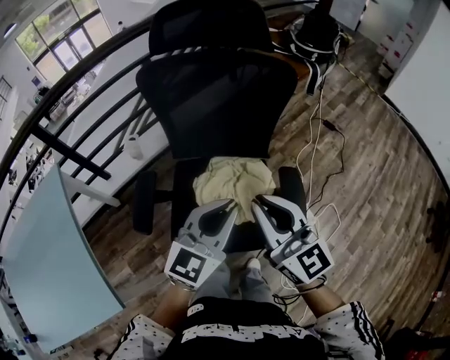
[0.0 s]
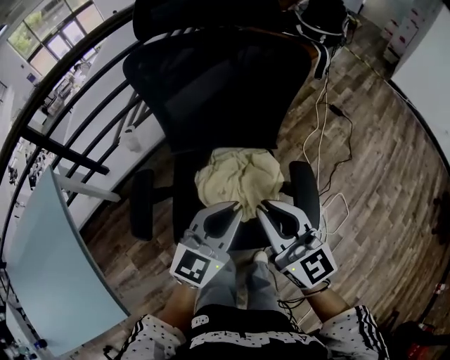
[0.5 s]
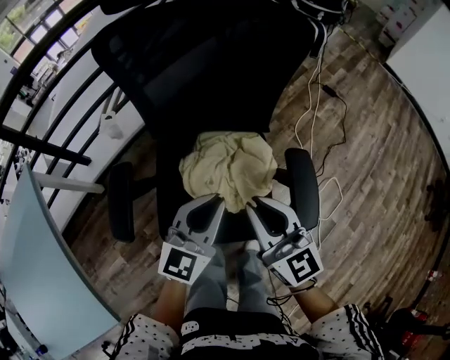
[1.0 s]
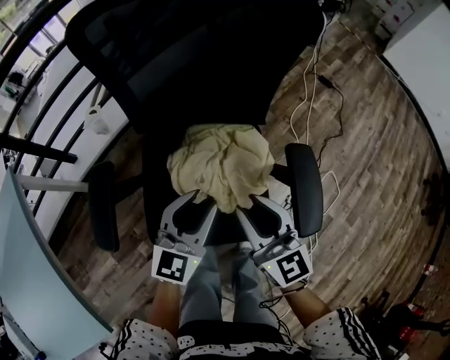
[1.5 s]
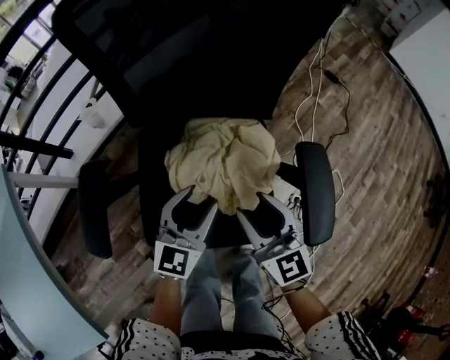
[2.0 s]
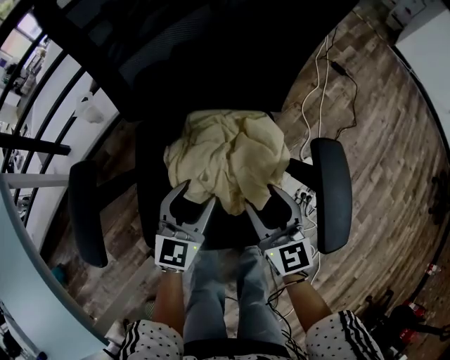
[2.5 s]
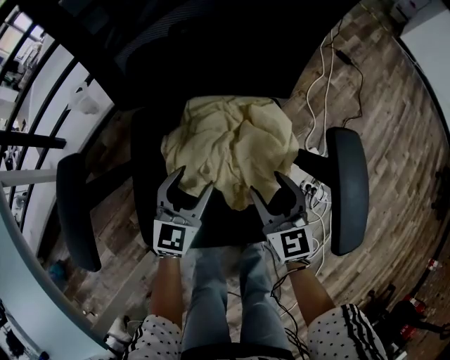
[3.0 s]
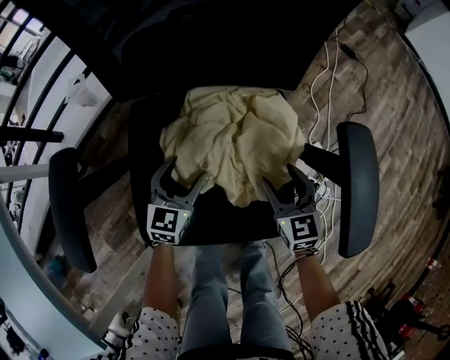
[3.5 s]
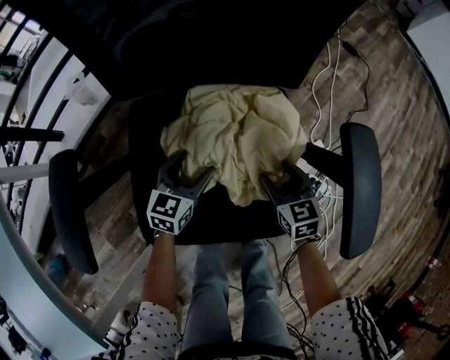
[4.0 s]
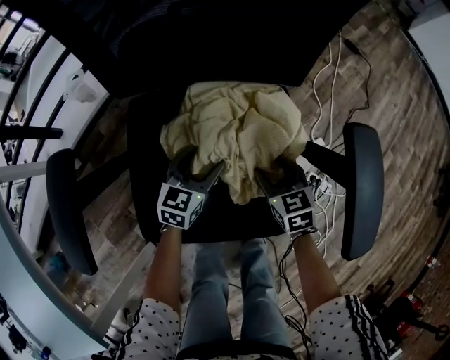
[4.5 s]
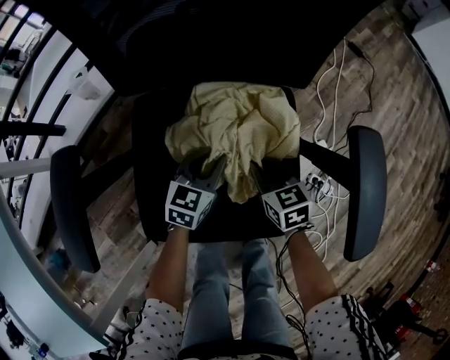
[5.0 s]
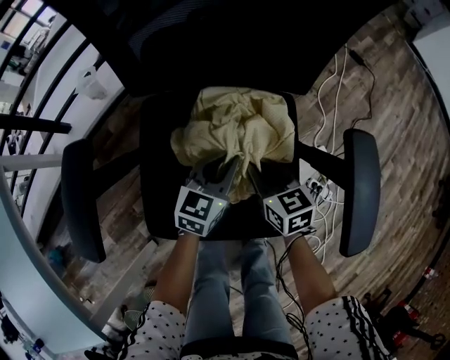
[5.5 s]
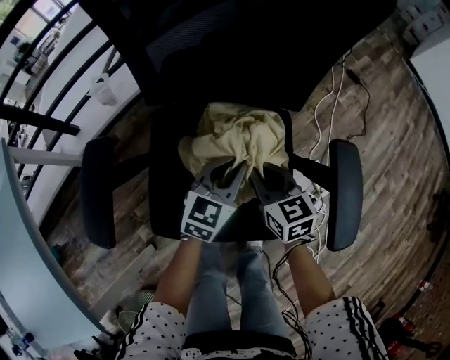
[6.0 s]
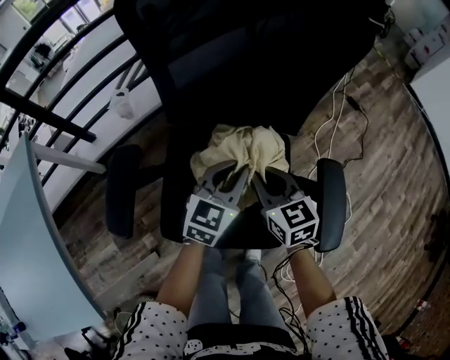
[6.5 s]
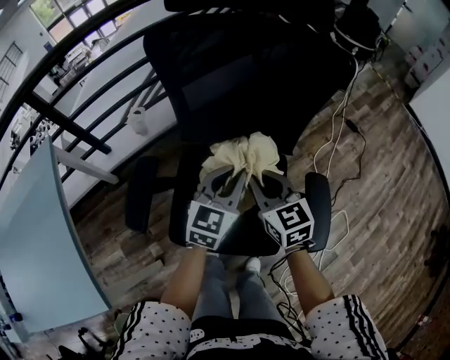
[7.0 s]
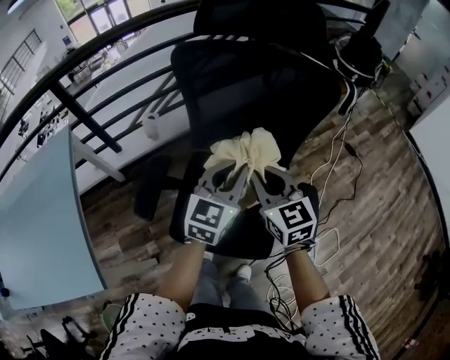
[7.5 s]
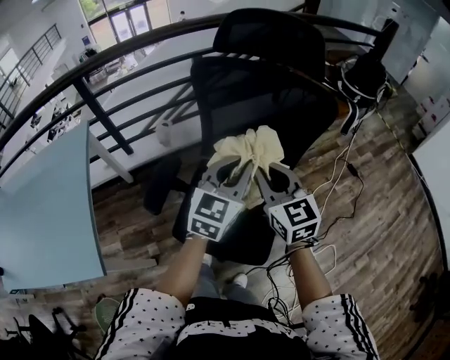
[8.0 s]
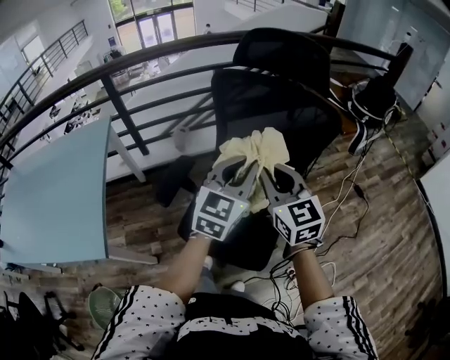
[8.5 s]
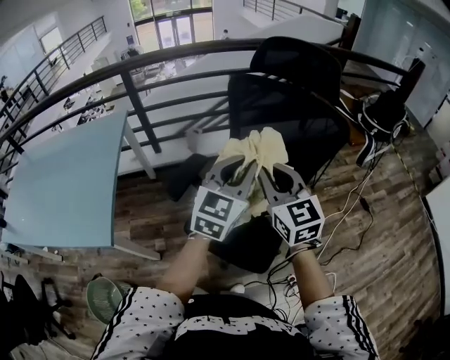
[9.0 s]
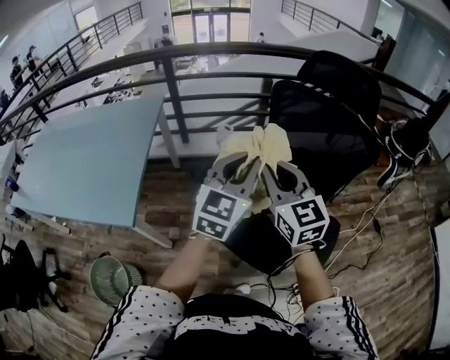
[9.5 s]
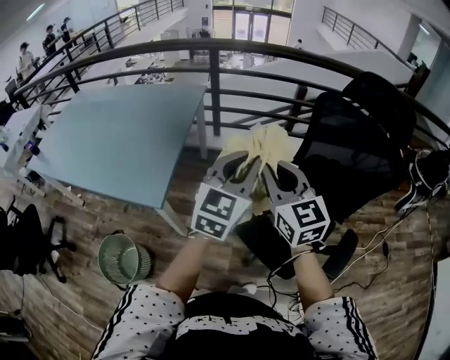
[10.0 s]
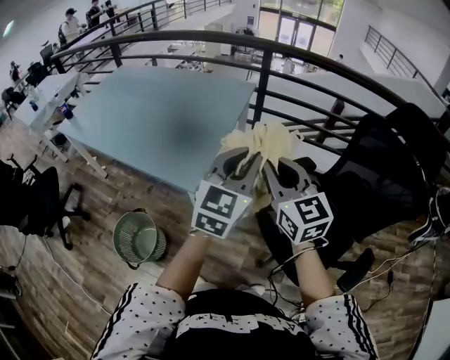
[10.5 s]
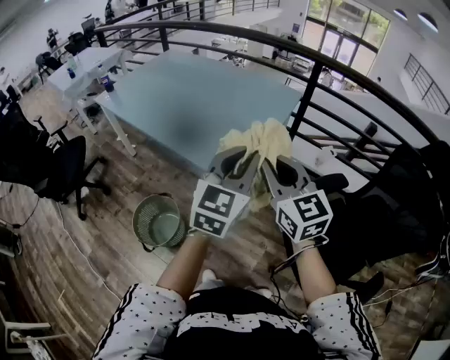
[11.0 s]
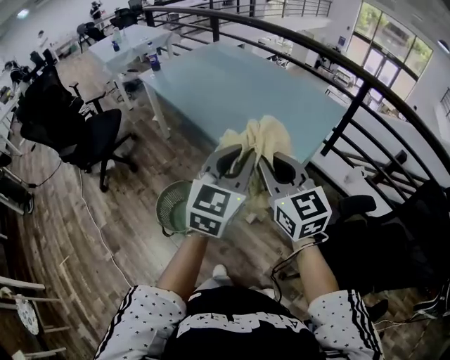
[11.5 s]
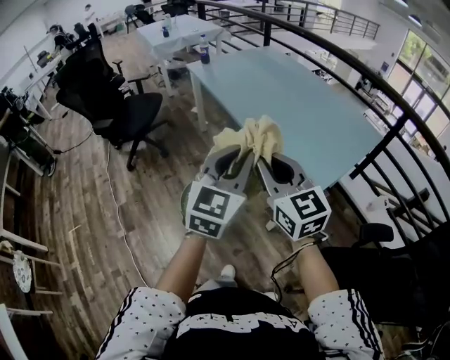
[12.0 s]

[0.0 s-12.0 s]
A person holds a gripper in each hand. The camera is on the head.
0.0 to 2.0 s: Both grippers travel together downward, approximately 30 cm. The right gripper opens. Meanwhile the left gripper opens up.
2.0 to 4.0 s: The grippers both shift downward by about 25 cm. The left gripper opens its fingers. The right gripper tips its fingers downward by roughly 30 degrees.
4.0 to 6.0 s: The left gripper heads upward and to the right, covering about 15 cm, and closes its fingers. The right gripper heads upward and to the left, covering roughly 15 cm, and closes up.
6.0 to 8.0 s: Both grippers move upward, some 35 cm. The left gripper turns by some 30 degrees, while the right gripper swivels approximately 30 degrees.
8.0 to 10.0 s: The left gripper moves about 30 cm, and swivels some 30 degrees, while the right gripper moves about 30 cm, and swivels approximately 30 degrees.
10.0 to 12.0 s: The two grippers travel together, about 50 cm. The left gripper rotates roughly 50 degrees; the right gripper swivels about 50 degrees.

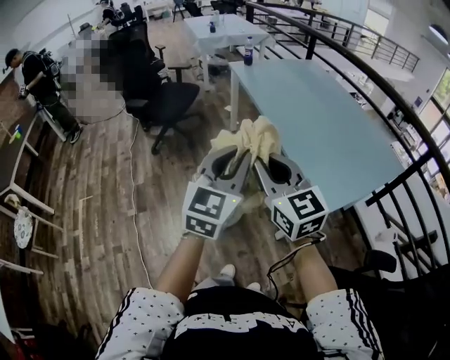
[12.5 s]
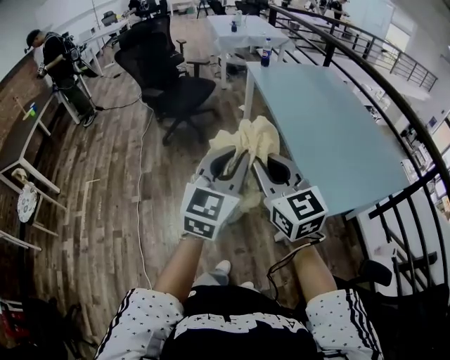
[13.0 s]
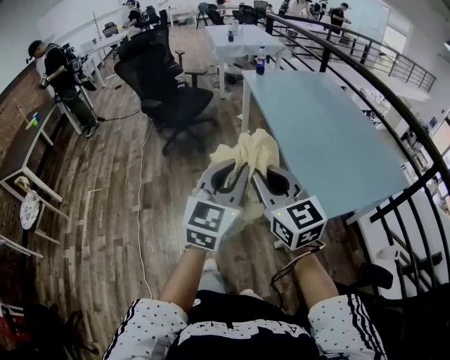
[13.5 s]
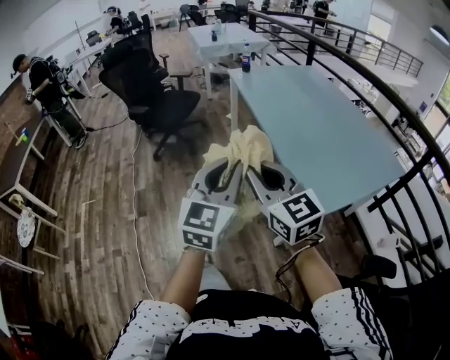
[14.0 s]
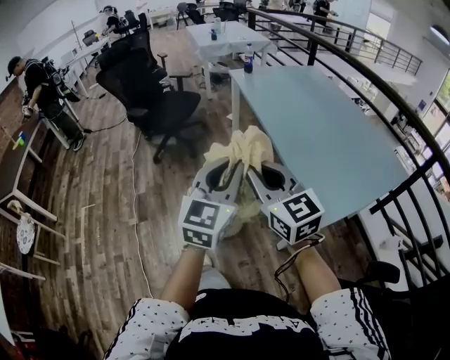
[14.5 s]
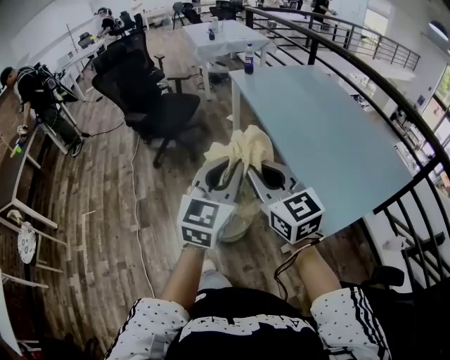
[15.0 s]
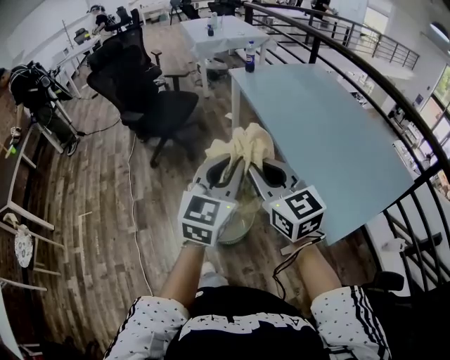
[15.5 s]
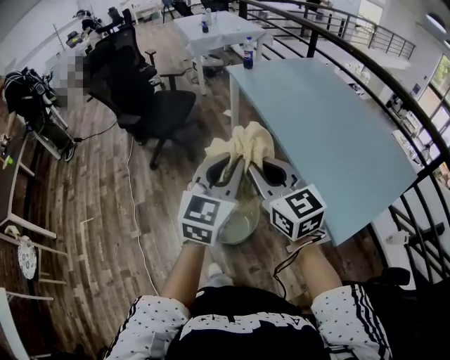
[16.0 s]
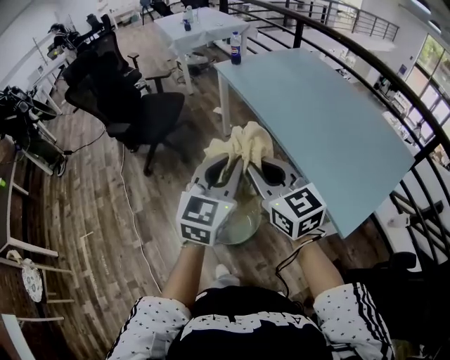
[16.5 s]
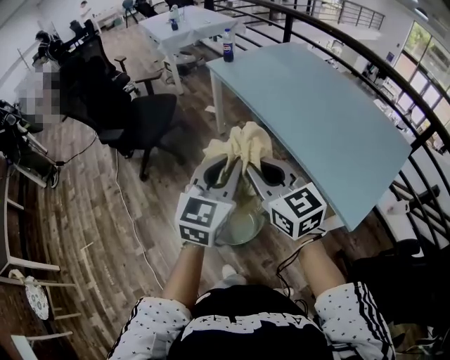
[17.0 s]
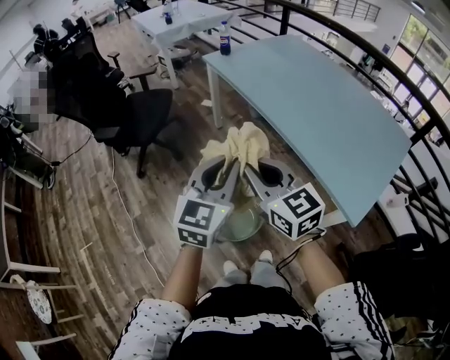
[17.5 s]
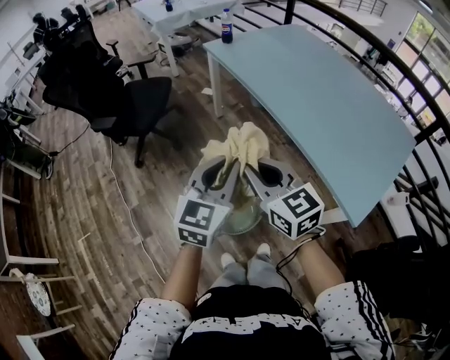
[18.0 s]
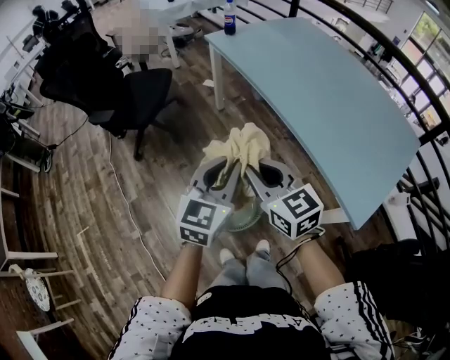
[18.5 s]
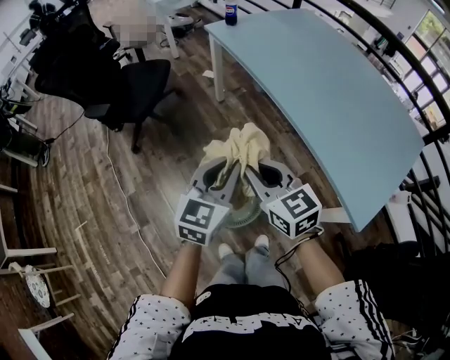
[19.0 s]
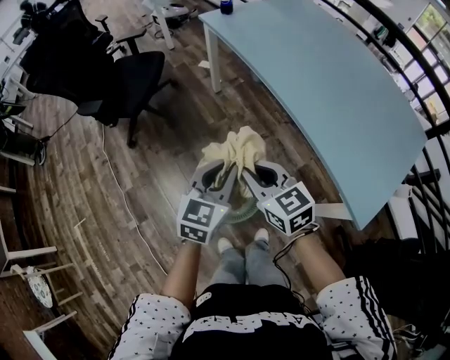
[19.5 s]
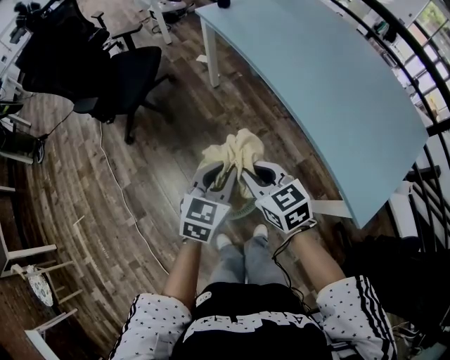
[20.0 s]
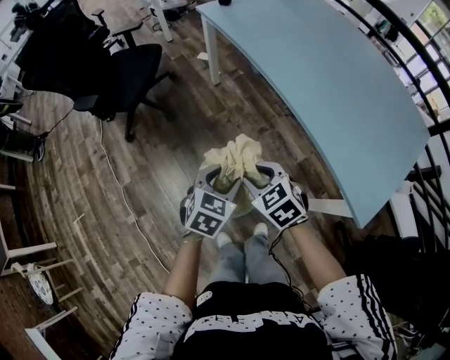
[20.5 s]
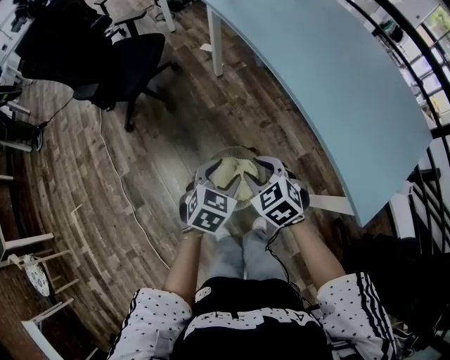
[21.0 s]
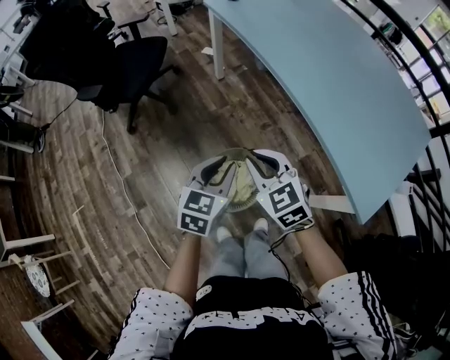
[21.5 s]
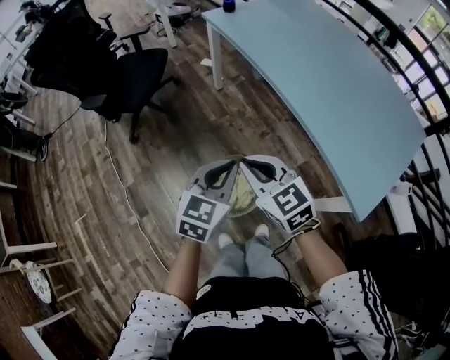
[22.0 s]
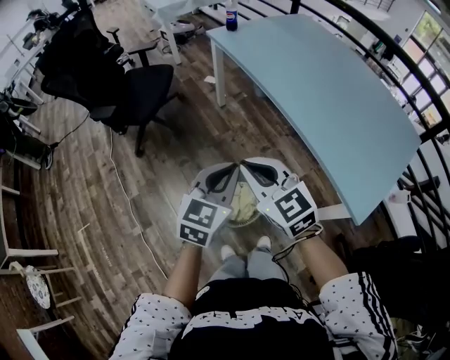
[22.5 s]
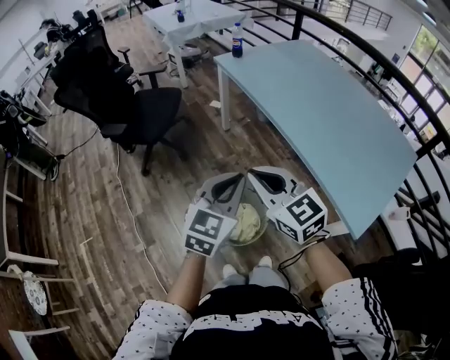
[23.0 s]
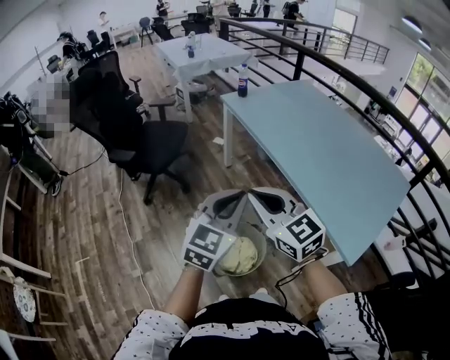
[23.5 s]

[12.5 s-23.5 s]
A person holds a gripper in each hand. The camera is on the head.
12.5 to 14.5 s: The grippers make only small movements.
14.5 to 16.0 s: The grippers both shift forward by some 15 cm.
16.0 to 18.0 s: The two grippers go roughly 10 cm downward and forward.
18.0 to 20.0 s: Both grippers move downward, about 15 cm.
20.0 to 21.5 s: The right gripper travels downward and back again, about 5 cm each way, and opens and closes again. The left gripper opens and closes again.
21.5 to 23.5 s: Both grippers travel together upward, some 20 cm. The left gripper turns by roughly 30 degrees; the right gripper changes its angle by some 20 degrees.

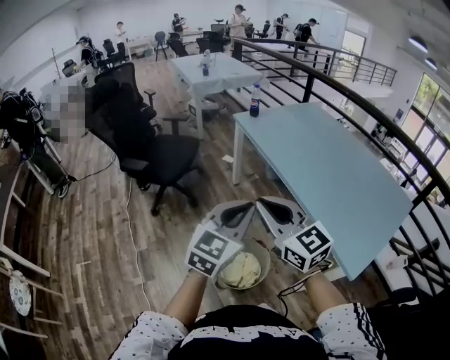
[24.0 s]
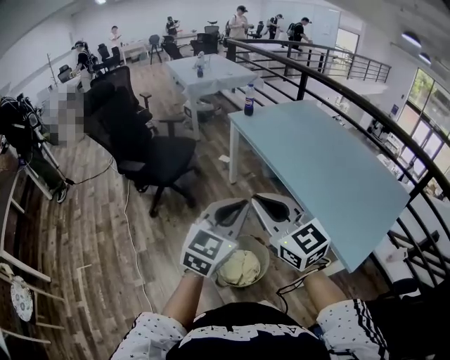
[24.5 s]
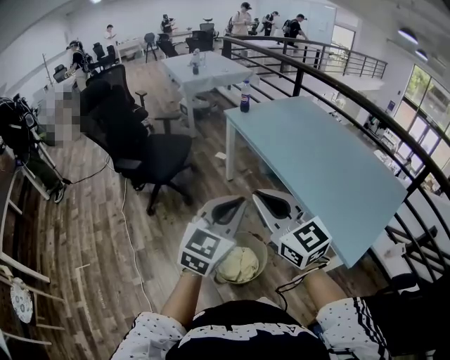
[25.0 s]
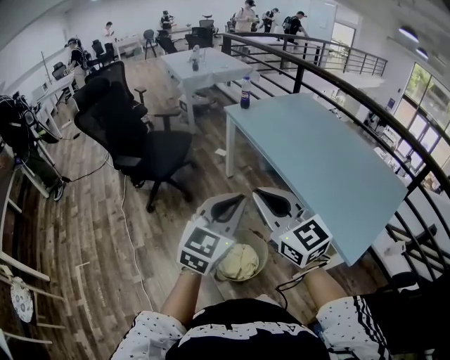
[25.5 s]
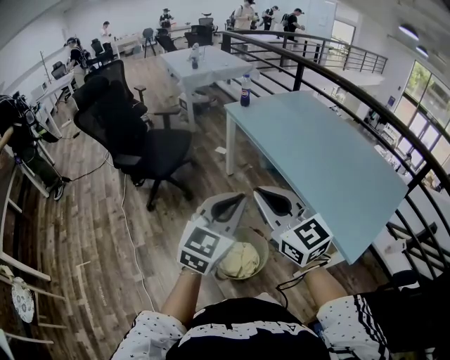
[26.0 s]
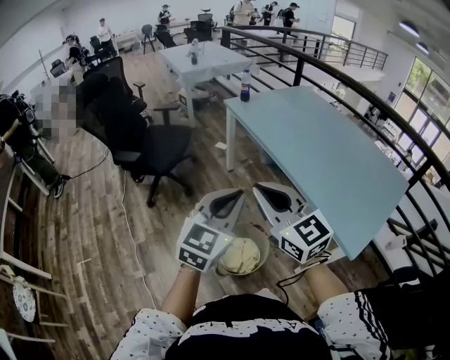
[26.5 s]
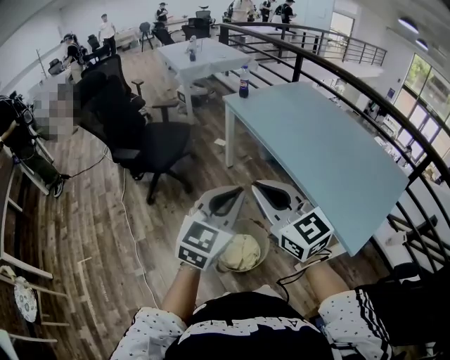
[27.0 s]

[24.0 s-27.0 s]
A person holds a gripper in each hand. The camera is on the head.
24.0 to 25.5 s: The grippers move only a little.
25.5 to 27.0 s: The two grippers keep their place.

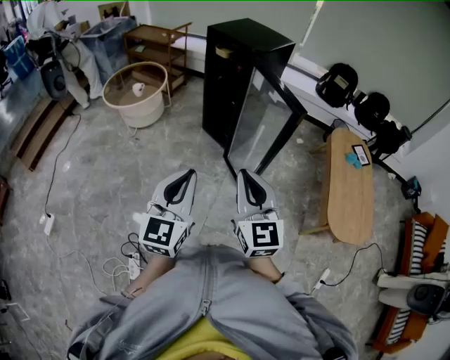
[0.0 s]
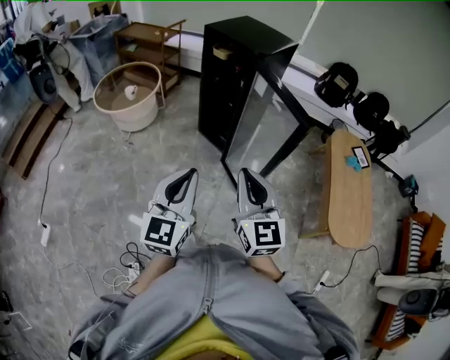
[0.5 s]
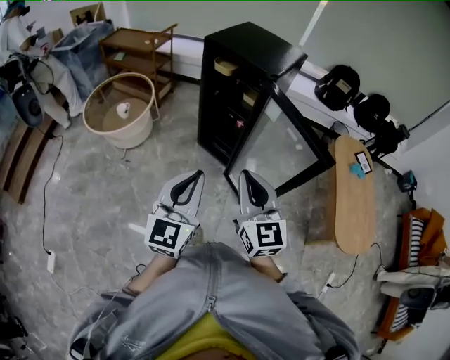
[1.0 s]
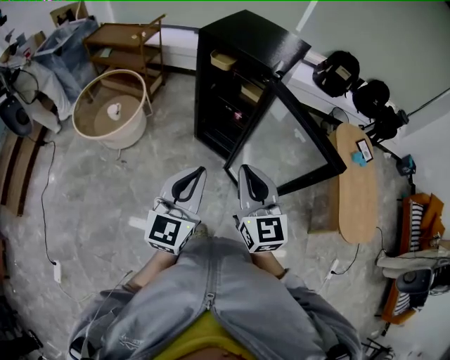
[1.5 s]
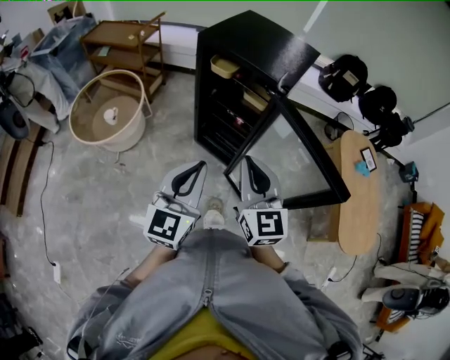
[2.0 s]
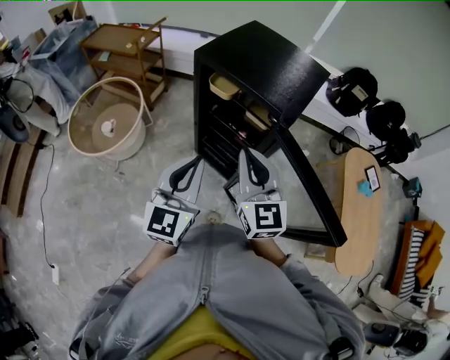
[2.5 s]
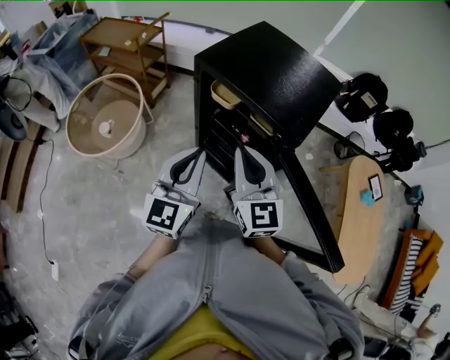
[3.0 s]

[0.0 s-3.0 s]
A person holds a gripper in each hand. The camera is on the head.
0.0 to 1.5 s: The right gripper moves forward and to the left, approximately 35 cm, while the left gripper travels forward by roughly 30 cm.
1.5 to 3.0 s: The two grippers go about 30 cm forward.
